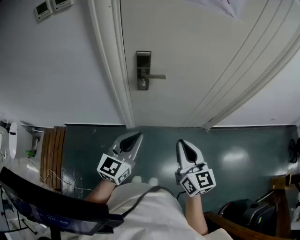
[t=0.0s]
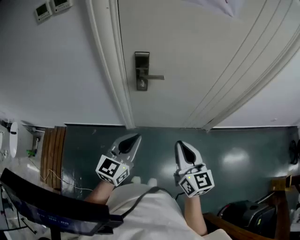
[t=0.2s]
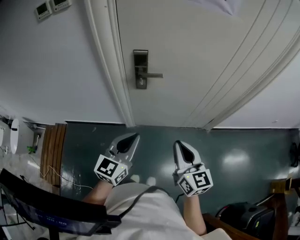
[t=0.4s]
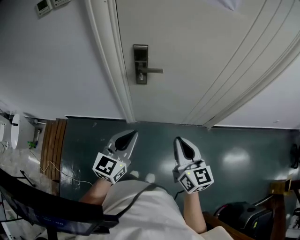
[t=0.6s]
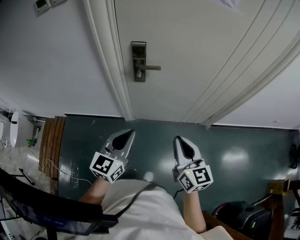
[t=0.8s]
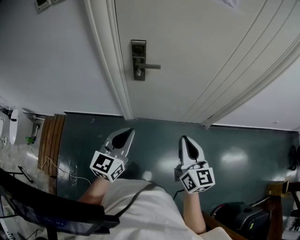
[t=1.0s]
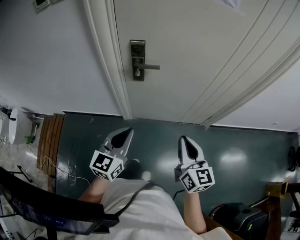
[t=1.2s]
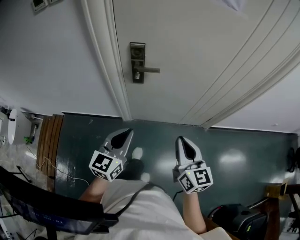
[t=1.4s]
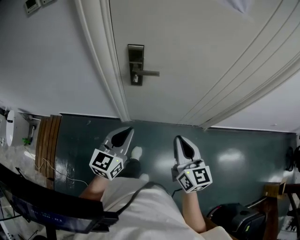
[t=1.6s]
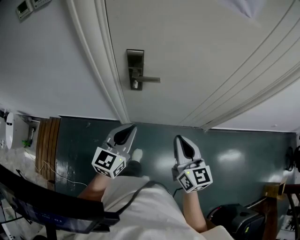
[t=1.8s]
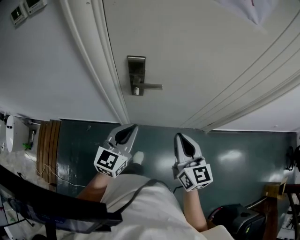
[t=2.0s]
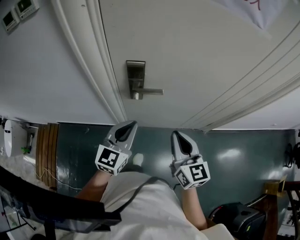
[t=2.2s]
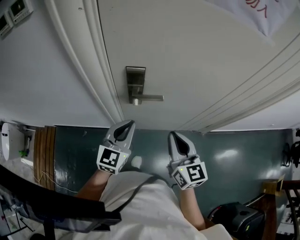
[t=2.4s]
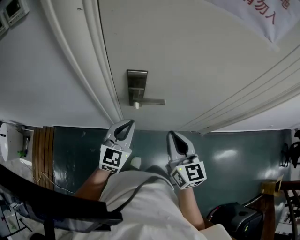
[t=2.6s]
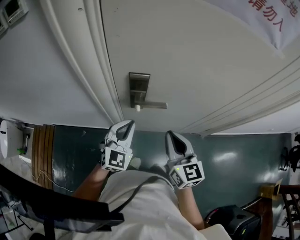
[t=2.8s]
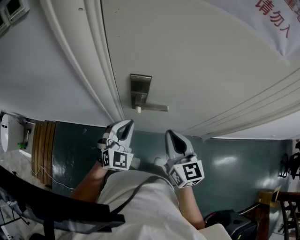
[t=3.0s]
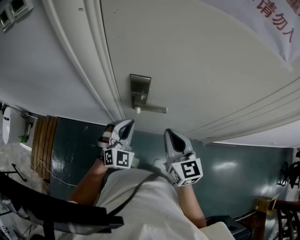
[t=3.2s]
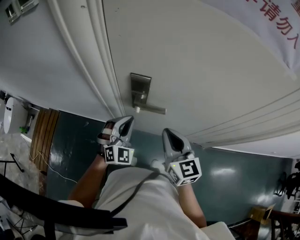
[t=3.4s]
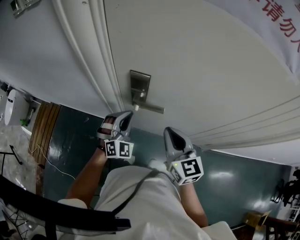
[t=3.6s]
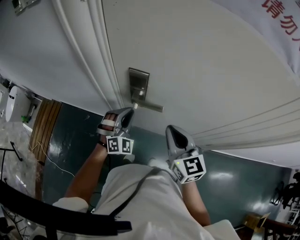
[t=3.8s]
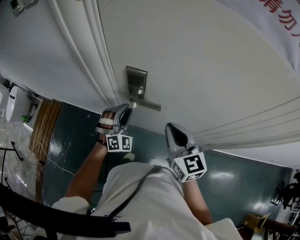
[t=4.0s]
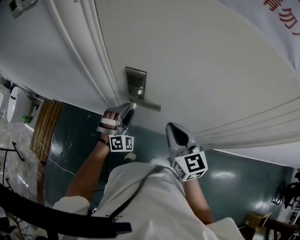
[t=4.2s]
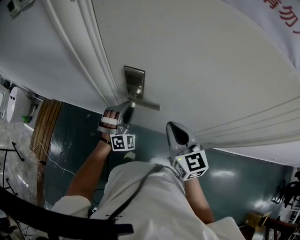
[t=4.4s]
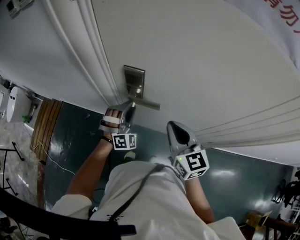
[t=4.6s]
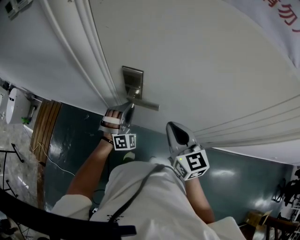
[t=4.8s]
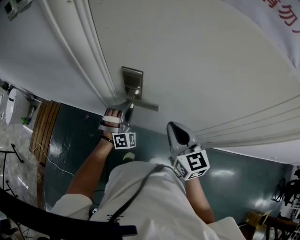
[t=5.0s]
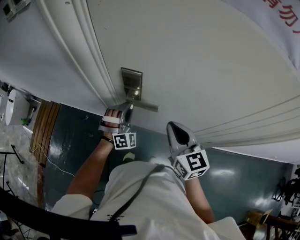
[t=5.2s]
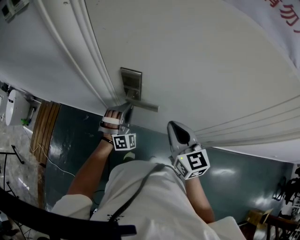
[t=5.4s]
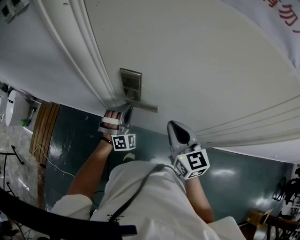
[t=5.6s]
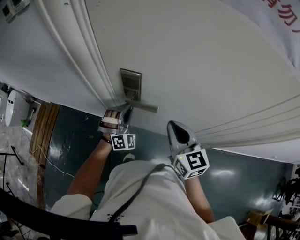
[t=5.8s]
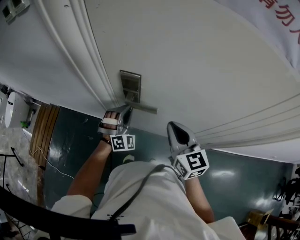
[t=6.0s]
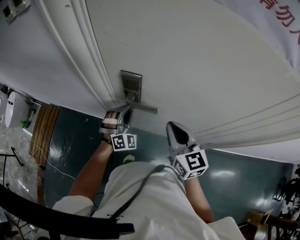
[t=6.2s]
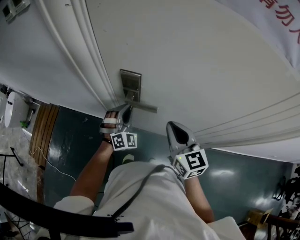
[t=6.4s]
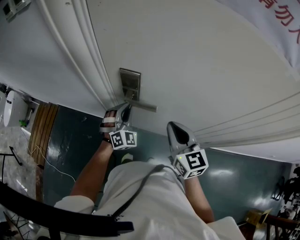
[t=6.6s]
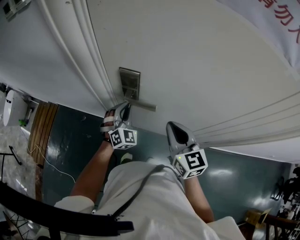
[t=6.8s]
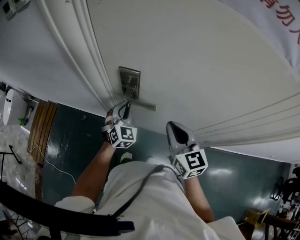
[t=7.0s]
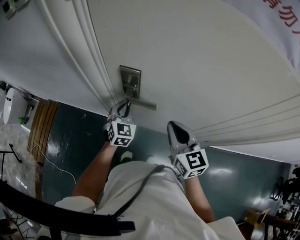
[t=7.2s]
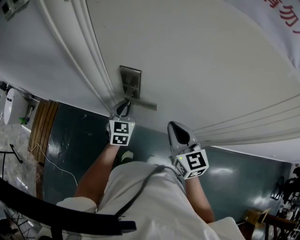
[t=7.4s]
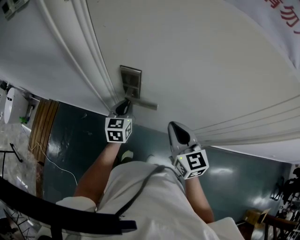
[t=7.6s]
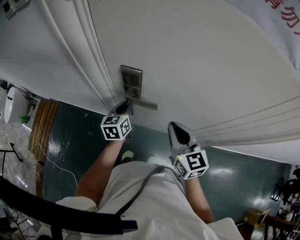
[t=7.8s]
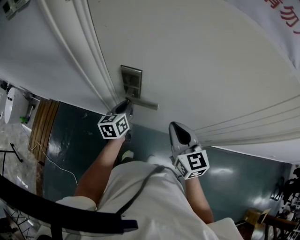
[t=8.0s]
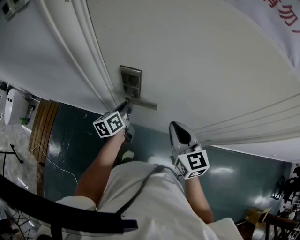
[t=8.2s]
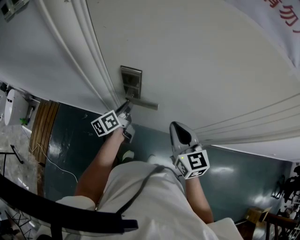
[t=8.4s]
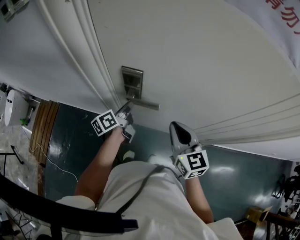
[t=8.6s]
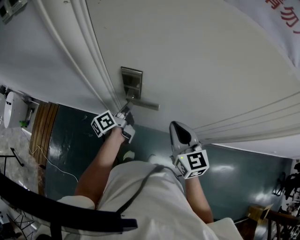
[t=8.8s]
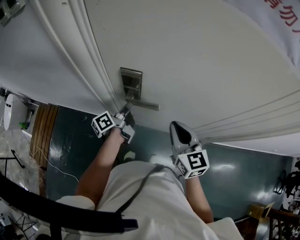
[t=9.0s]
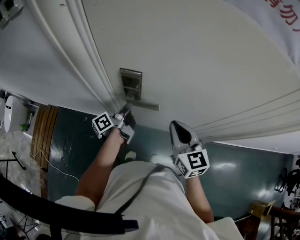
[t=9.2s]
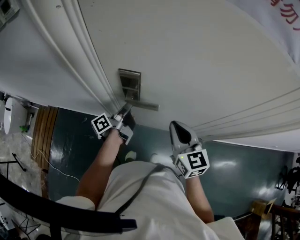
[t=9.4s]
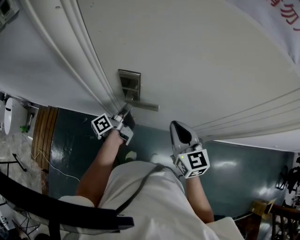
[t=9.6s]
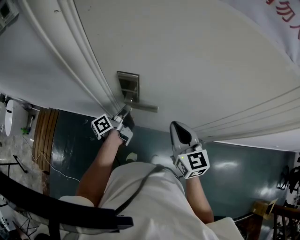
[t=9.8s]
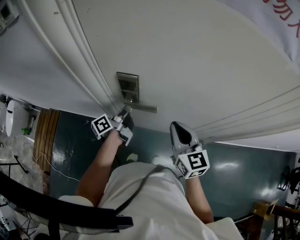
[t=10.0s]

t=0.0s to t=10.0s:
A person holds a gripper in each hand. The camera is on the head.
t=0.0s to t=1.4s: The right gripper heads to the right, covering roughly 5 cm.
t=1.4s to t=2.8s: The left gripper shifts approximately 25 cm forward, and turns by approximately 30 degrees; the right gripper goes approximately 25 cm forward and to the left.
t=2.8s to t=4.2s: The right gripper travels to the right by approximately 5 cm, while the left gripper shifts roughly 10 cm downward and forward, swivels approximately 50 degrees, and opens.
t=4.2s to t=5.8s: The left gripper closes its fingers.
t=5.8s to t=7.2s: The left gripper twists roughly 50 degrees counterclockwise, seen from behind.
t=7.2s to t=8.6s: The left gripper rolls counterclockwise, seen from behind, by about 80 degrees.

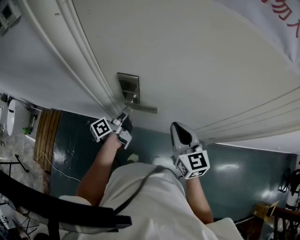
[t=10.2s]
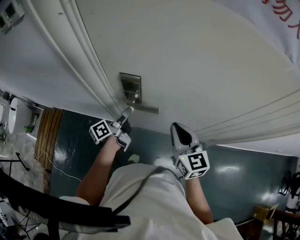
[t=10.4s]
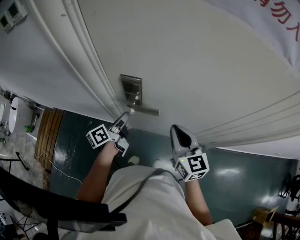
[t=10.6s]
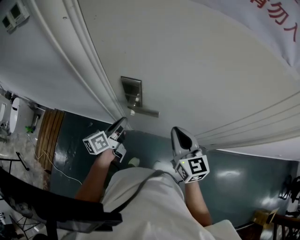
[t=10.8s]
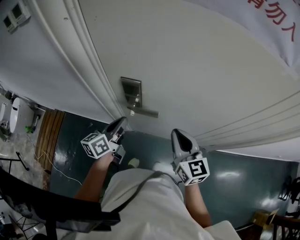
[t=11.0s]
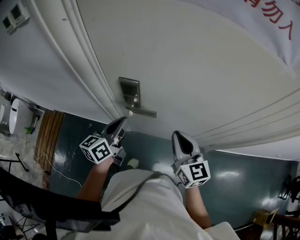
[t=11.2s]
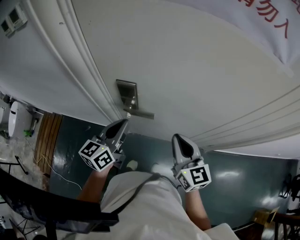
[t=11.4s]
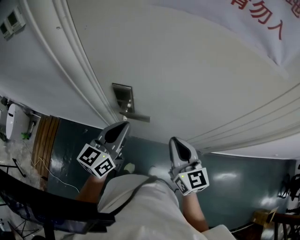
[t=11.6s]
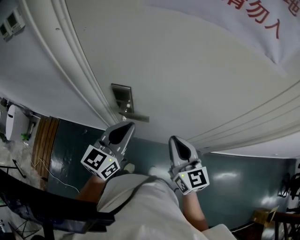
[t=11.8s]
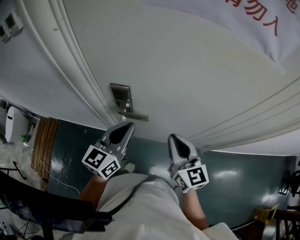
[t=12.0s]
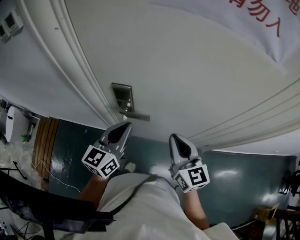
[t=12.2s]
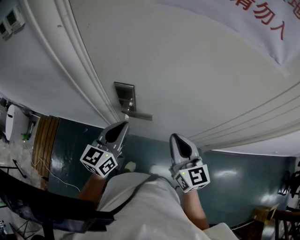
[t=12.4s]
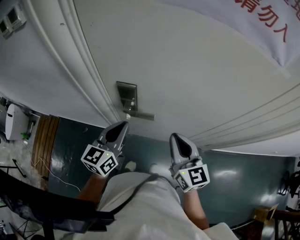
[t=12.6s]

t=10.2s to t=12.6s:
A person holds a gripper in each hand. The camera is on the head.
t=10.2s to t=11.4s: The left gripper moves upward and backward, approximately 15 cm, twists approximately 50 degrees clockwise, seen from behind, and closes up.

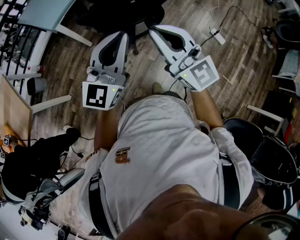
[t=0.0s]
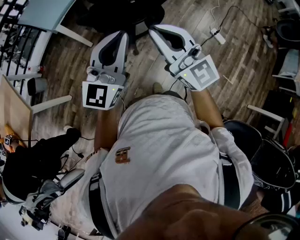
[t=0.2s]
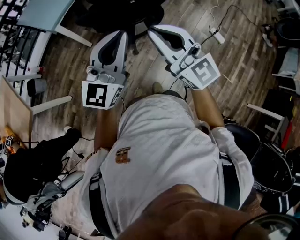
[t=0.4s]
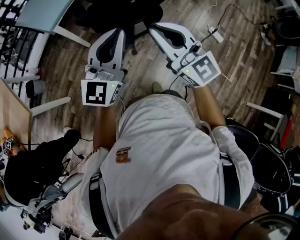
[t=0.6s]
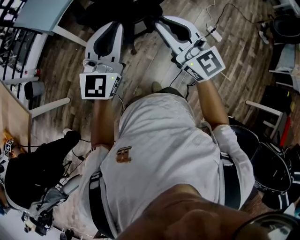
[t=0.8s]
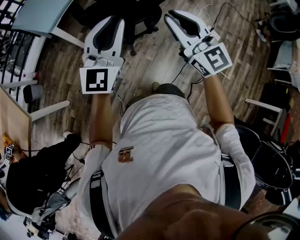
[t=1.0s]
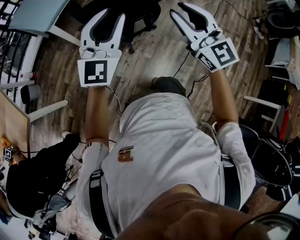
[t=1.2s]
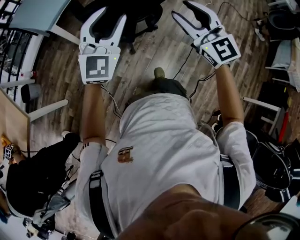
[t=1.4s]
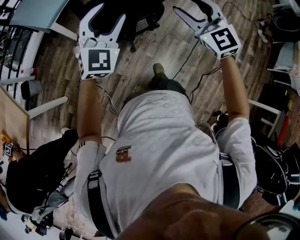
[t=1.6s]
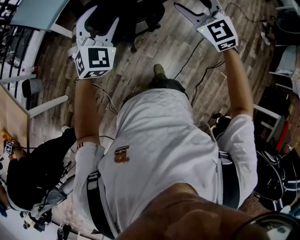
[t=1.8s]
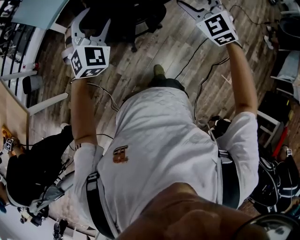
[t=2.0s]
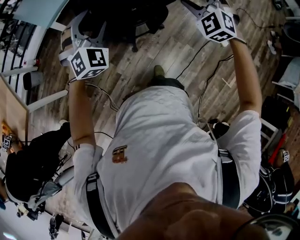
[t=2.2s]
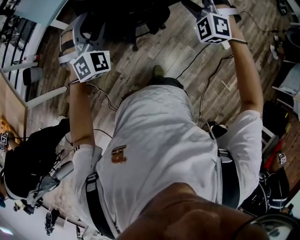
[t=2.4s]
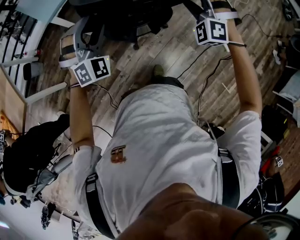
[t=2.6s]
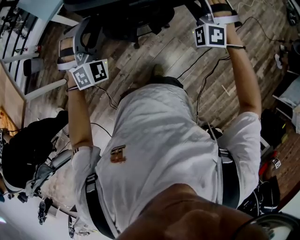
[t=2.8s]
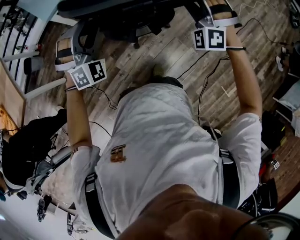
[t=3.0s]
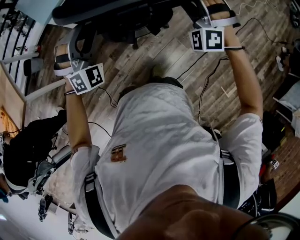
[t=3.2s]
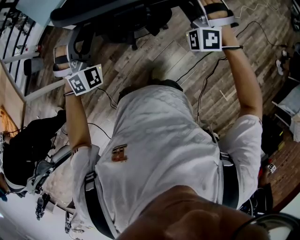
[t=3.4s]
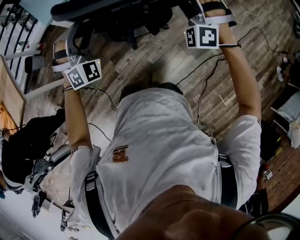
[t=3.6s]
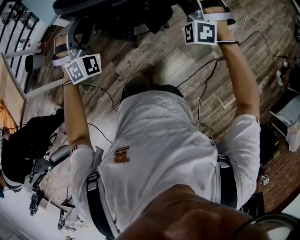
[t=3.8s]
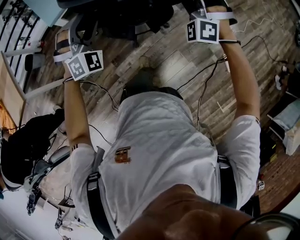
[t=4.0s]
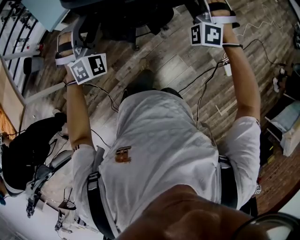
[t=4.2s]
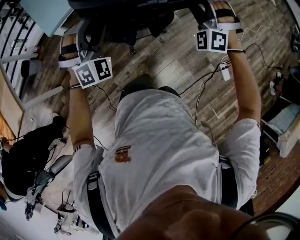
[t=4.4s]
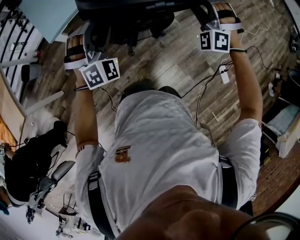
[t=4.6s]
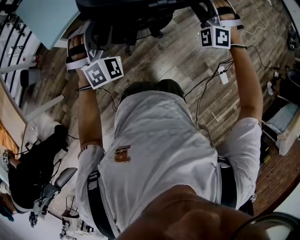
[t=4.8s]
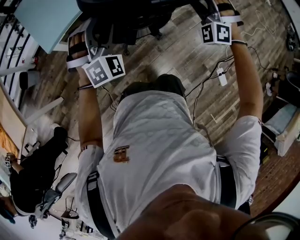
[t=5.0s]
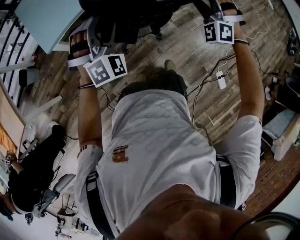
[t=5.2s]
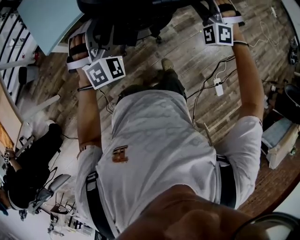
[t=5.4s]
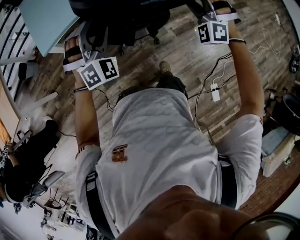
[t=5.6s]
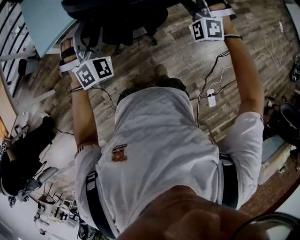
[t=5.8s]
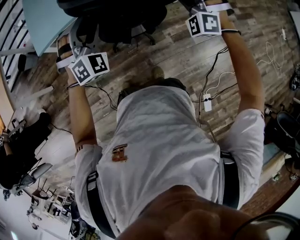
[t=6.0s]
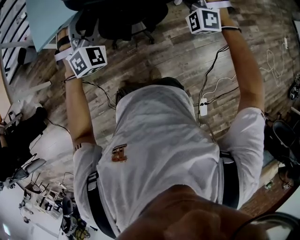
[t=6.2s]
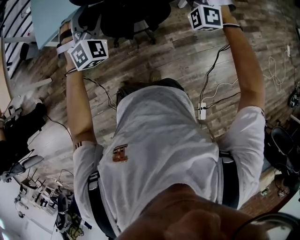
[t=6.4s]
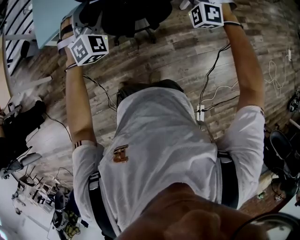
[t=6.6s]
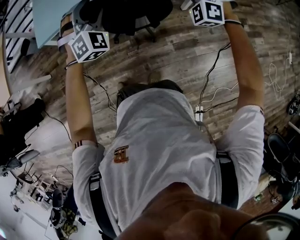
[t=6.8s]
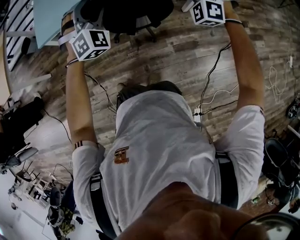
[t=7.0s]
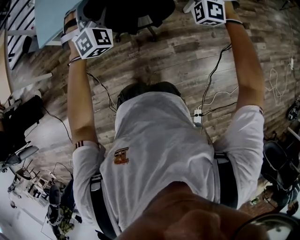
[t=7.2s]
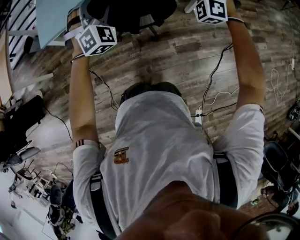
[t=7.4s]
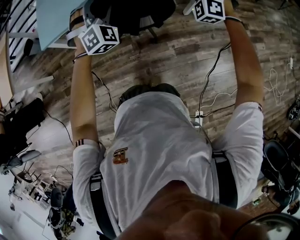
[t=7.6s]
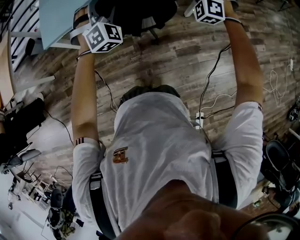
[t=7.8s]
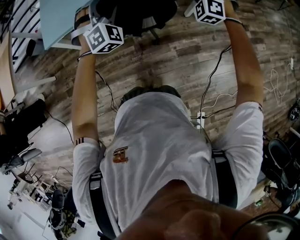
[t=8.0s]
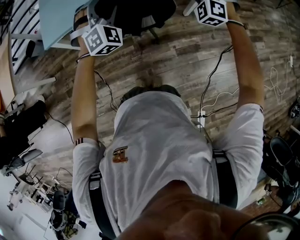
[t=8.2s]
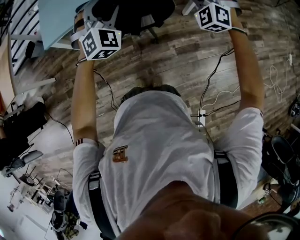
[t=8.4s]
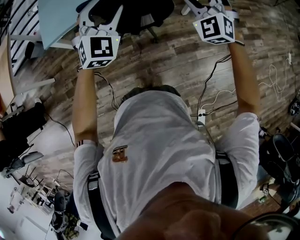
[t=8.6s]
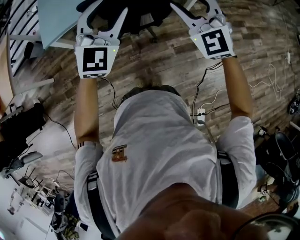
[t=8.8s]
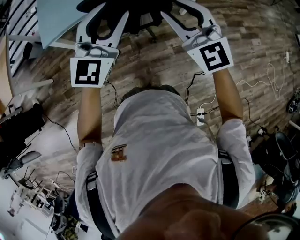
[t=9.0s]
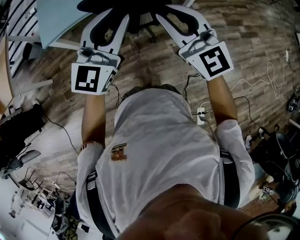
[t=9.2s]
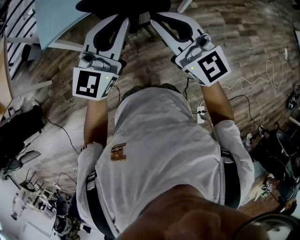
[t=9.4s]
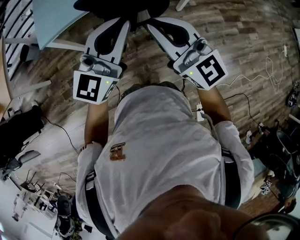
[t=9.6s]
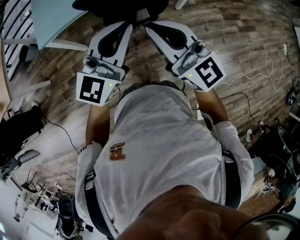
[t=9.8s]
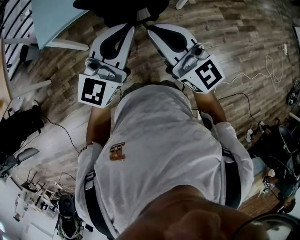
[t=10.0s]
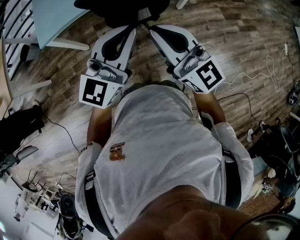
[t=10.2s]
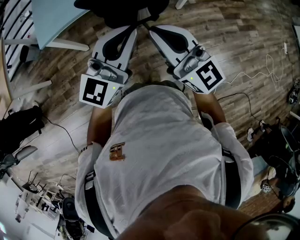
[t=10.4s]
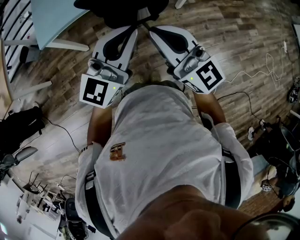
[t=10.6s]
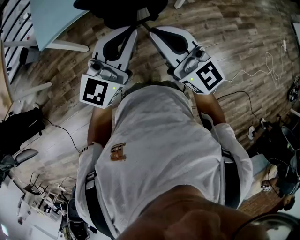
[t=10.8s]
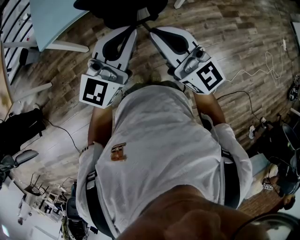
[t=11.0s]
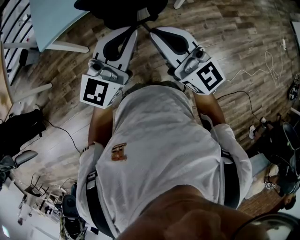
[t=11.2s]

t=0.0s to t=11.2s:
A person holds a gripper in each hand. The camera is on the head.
t=0.0s to t=1.6s: The left gripper heads forward, to the left and downward, covering some 15 cm, rotates about 40 degrees, and opens. Meanwhile the right gripper travels forward by about 10 cm, changes its angle by about 30 degrees, and opens.
t=1.6s to t=3.2s: The left gripper is displaced forward and downward by roughly 20 cm, and turns by approximately 40 degrees; the right gripper moves forward, to the right and downward, some 30 cm, and twists roughly 60 degrees counterclockwise, seen from behind.
t=3.2s to t=4.8s: Both grippers travel together forward, roughly 30 cm.
t=4.8s to t=6.4s: The left gripper moves to the right and forward, approximately 30 cm, and turns by roughly 20 degrees. The right gripper heads forward and to the right, covering about 35 cm, and turns by some 20 degrees.
t=6.4s to t=8.0s: The right gripper shifts about 10 cm forward. The left gripper travels forward and to the right by approximately 10 cm.
t=8.0s to t=9.6s: The right gripper travels backward, to the left and upward by some 35 cm, twists about 70 degrees clockwise, seen from behind, and closes its fingers; the left gripper is displaced backward and upward by approximately 25 cm, tilts its fingers some 30 degrees upward, and closes its fingers.
t=9.6s to t=11.2s: There are only small adjustments of the grippers.
